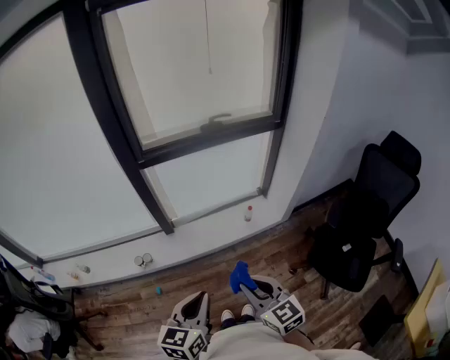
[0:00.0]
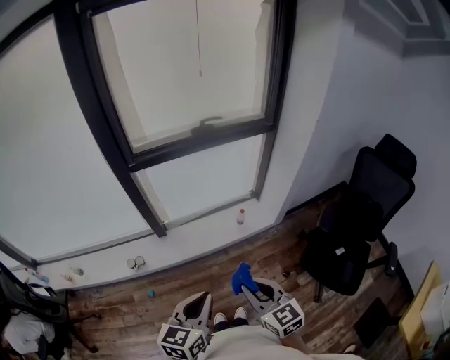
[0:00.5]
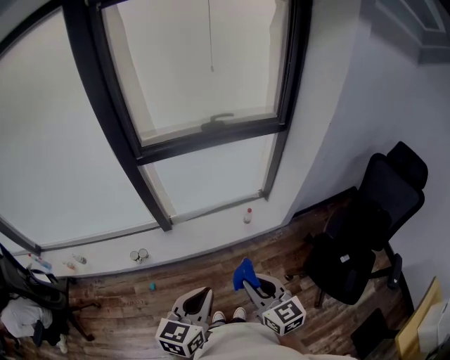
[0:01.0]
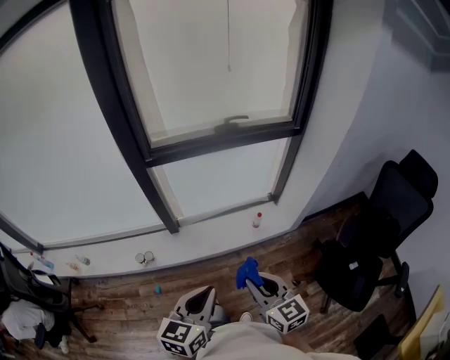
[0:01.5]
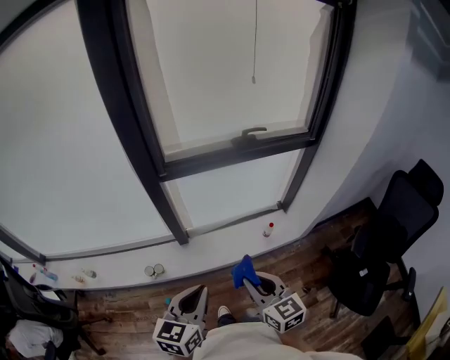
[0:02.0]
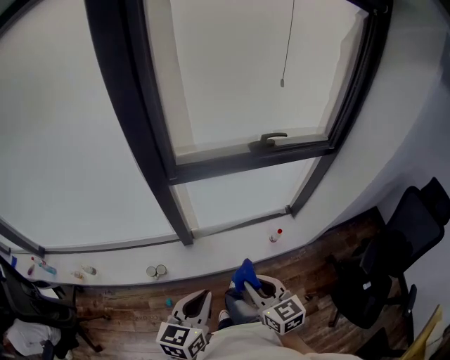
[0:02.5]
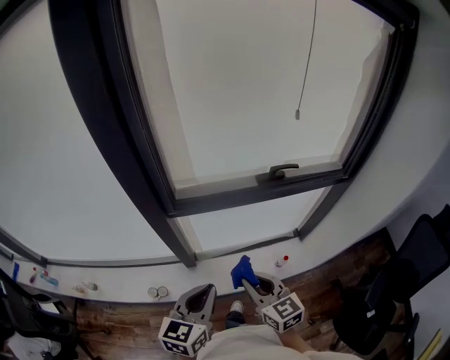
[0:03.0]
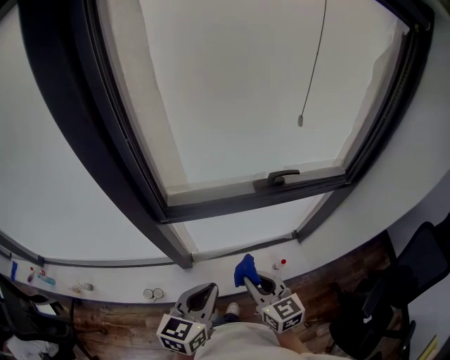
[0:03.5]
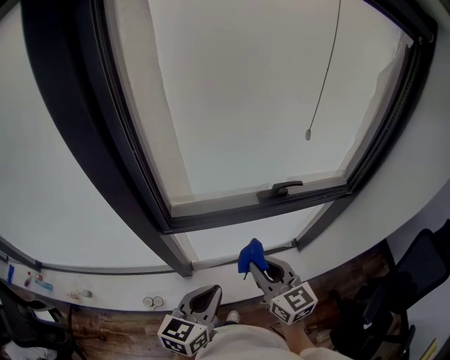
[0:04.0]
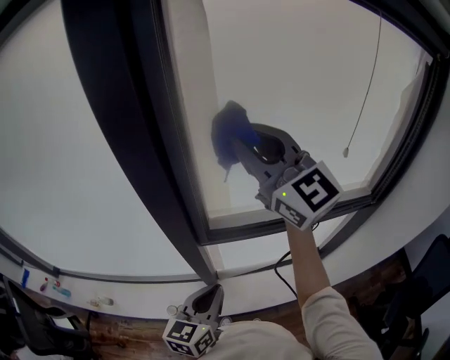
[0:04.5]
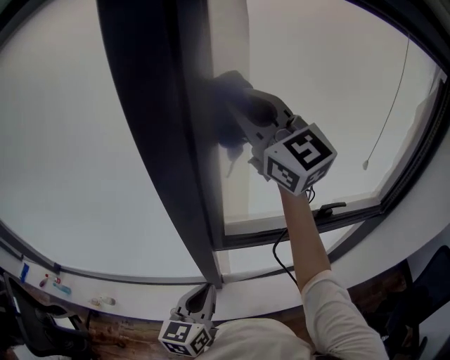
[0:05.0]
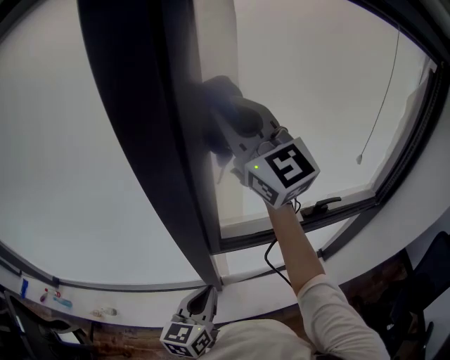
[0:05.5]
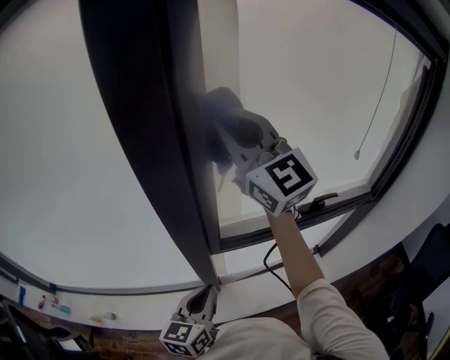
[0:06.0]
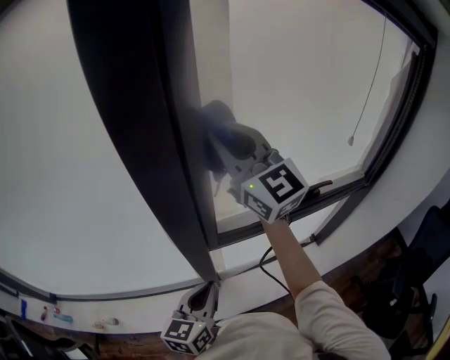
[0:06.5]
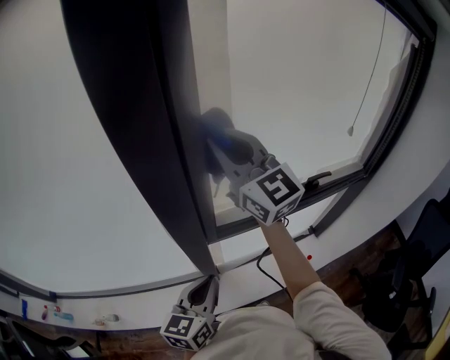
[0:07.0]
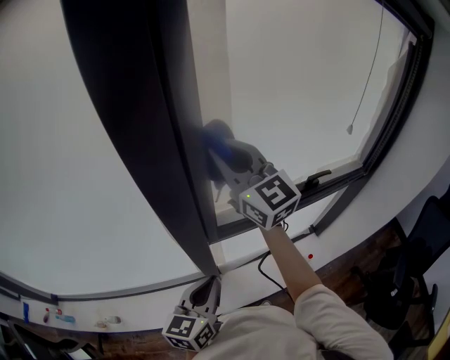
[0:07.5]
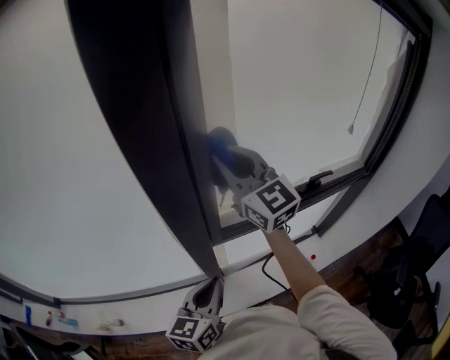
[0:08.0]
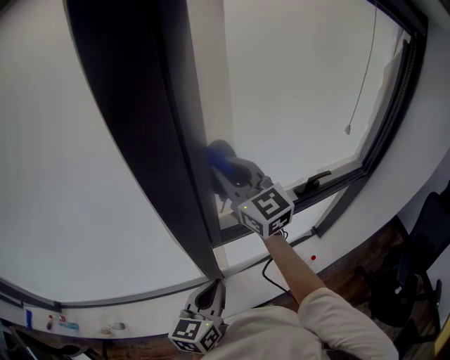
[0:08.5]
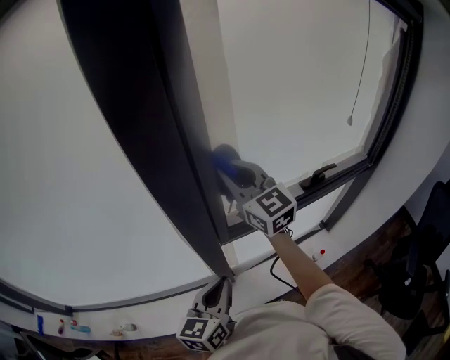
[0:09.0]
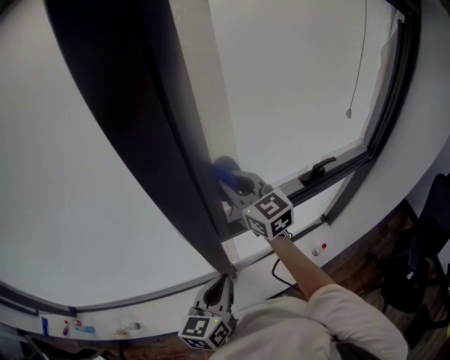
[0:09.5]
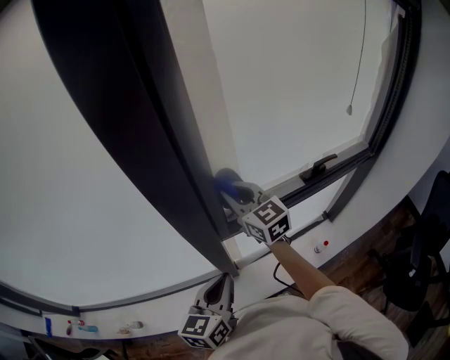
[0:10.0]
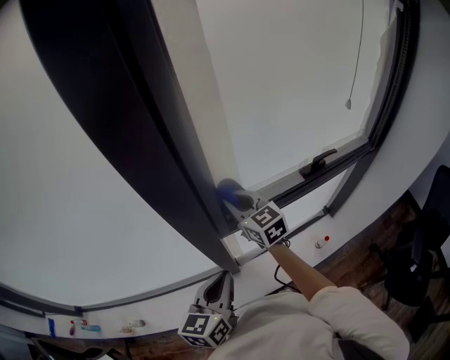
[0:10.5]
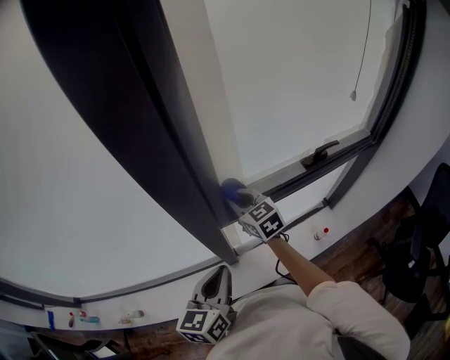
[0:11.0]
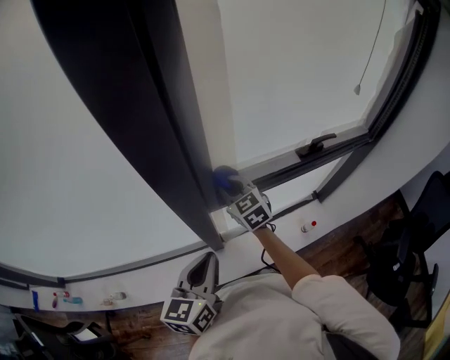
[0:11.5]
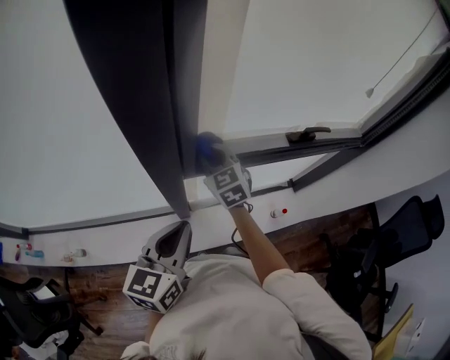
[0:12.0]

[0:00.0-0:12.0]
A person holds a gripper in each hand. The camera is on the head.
0:00.0 to 0:02.0: The two grippers go approximately 15 cm forward and to the left.
0:02.0 to 0:04.0: The two grippers go about 30 cm forward.
0:04.0 to 0:06.0: The right gripper shifts approximately 50 cm upward, forward and to the left, and changes its angle by roughly 40 degrees; the left gripper moves to the left and forward, some 20 cm.
0:06.0 to 0:08.0: The right gripper shifts approximately 15 cm downward.
0:08.0 to 0:10.0: The right gripper travels downward by approximately 15 cm.
0:10.0 to 0:12.0: The right gripper shifts approximately 15 cm downward, and swivels some 20 degrees.

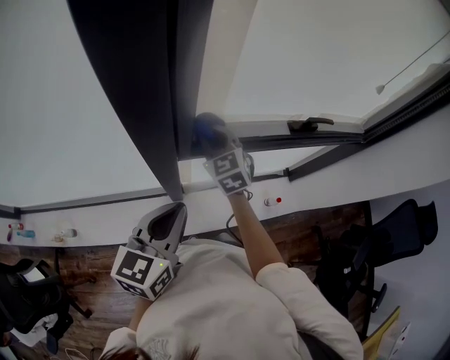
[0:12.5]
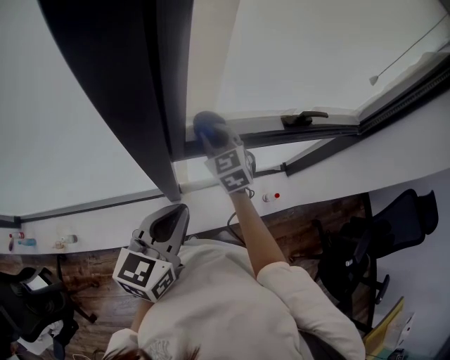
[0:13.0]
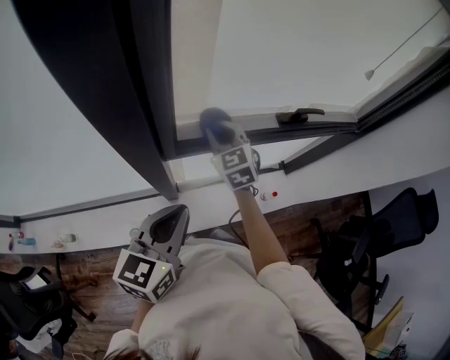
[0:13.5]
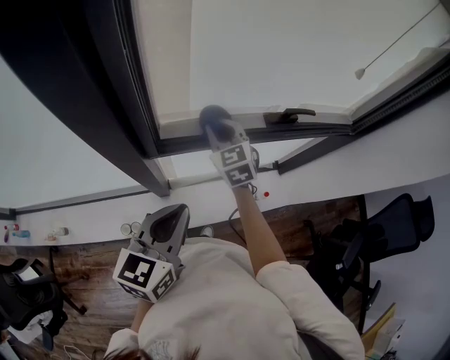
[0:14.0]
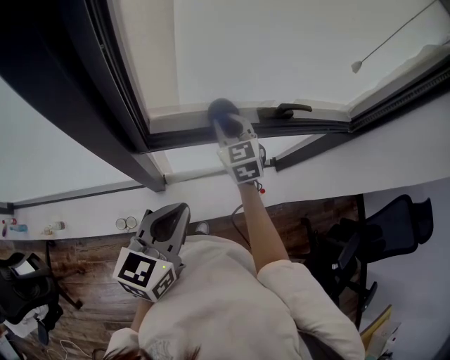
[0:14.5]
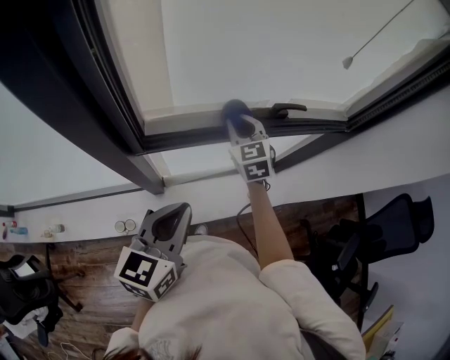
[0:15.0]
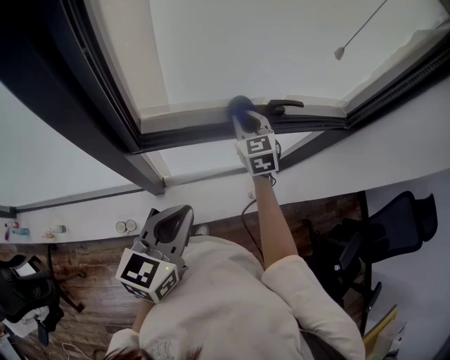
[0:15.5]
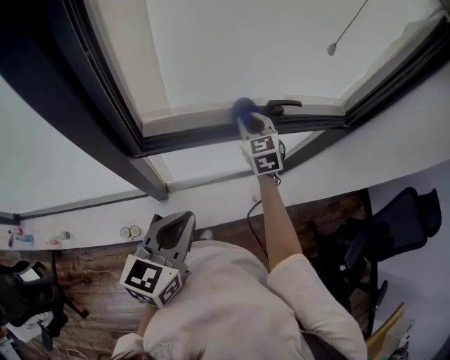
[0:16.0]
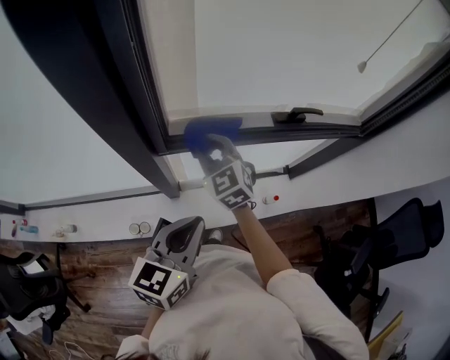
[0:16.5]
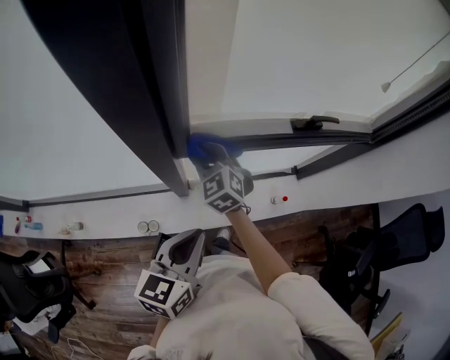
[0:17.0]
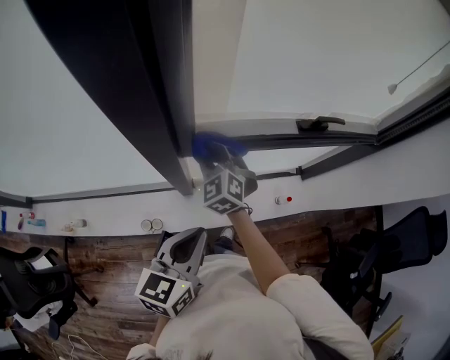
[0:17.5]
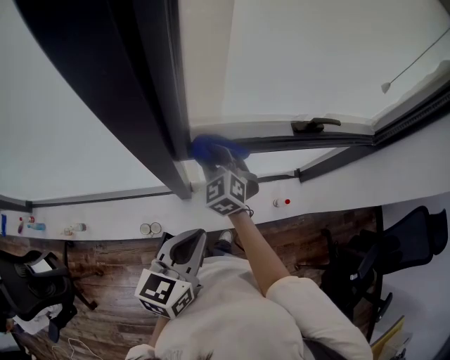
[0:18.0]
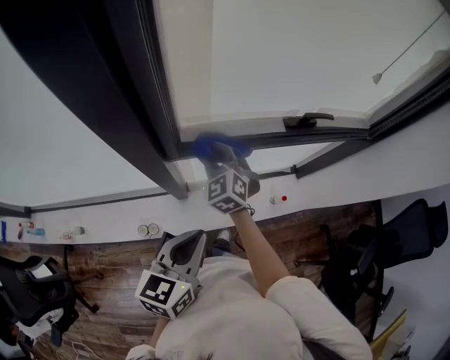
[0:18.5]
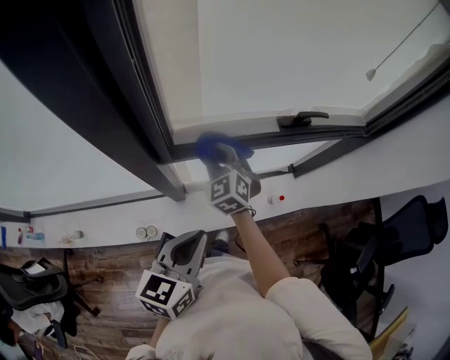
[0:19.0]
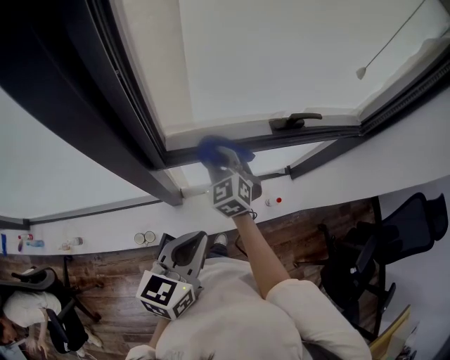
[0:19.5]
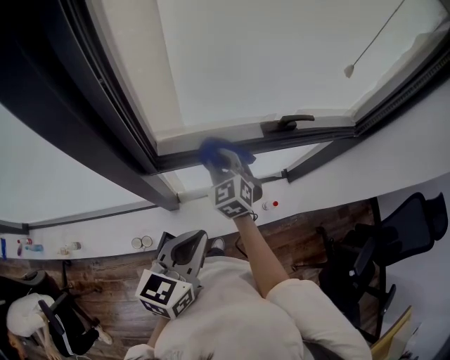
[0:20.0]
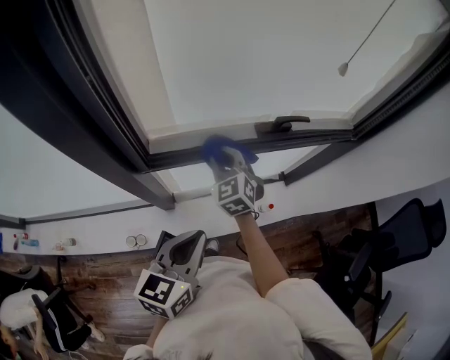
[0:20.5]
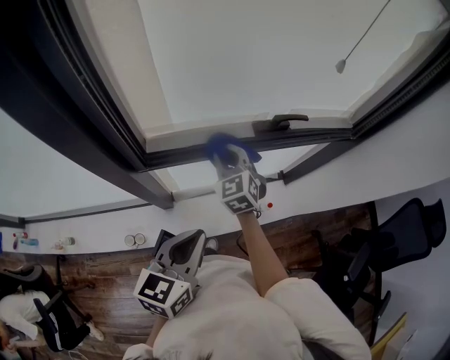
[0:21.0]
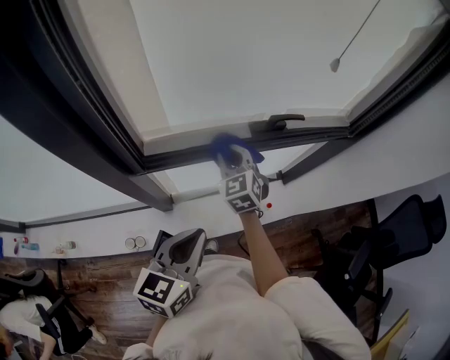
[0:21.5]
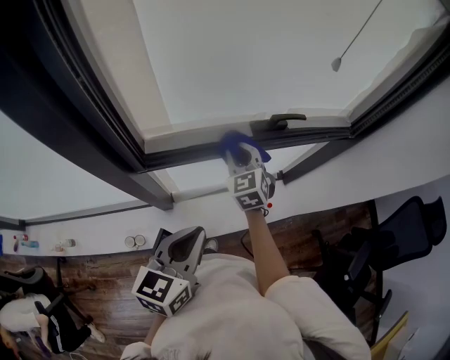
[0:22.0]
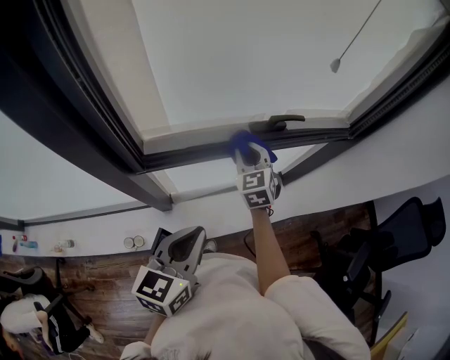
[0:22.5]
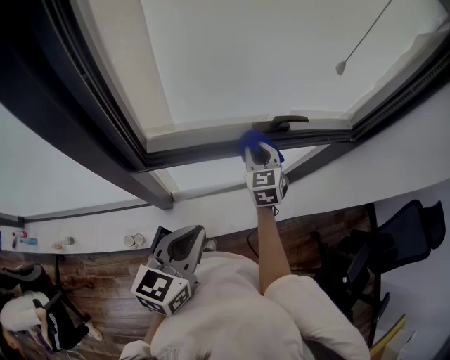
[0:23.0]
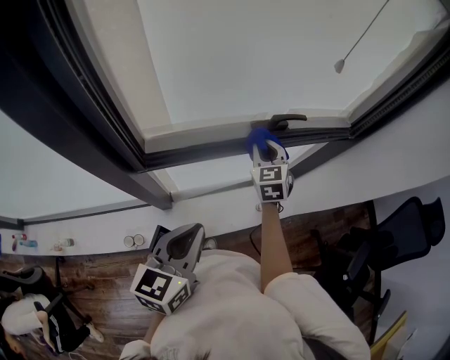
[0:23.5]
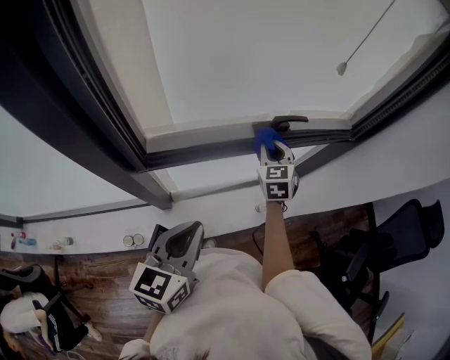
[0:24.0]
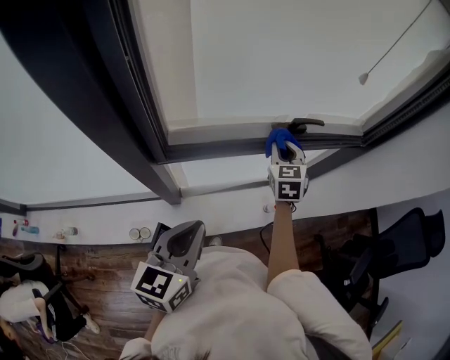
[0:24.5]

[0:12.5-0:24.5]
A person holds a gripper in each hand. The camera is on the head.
0:12.5 to 0:14.5: Both grippers move to the right, roughly 15 cm.
0:14.5 to 0:16.5: The right gripper shifts approximately 15 cm to the left and backward.
0:18.5 to 0:20.5: Both grippers travel together to the right, approximately 10 cm.
0:20.5 to 0:22.5: The right gripper moves to the right, some 10 cm.
0:22.5 to 0:24.5: The left gripper moves to the left, some 5 cm.

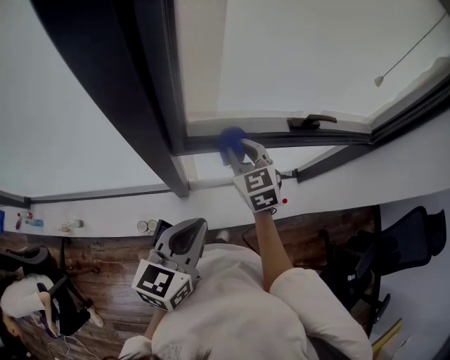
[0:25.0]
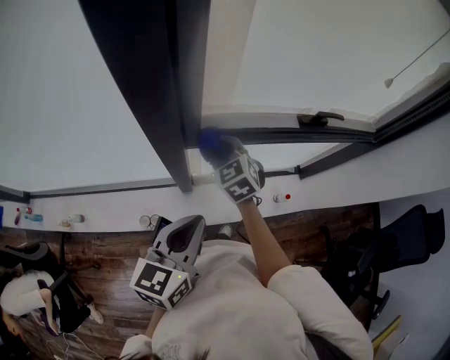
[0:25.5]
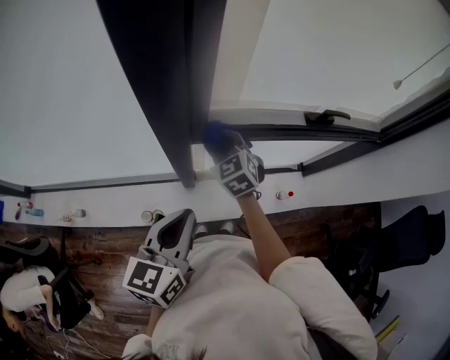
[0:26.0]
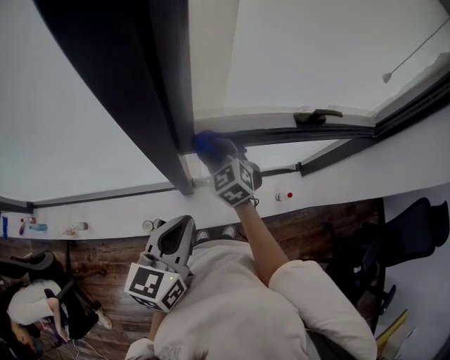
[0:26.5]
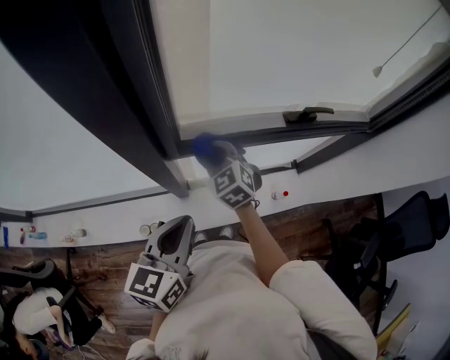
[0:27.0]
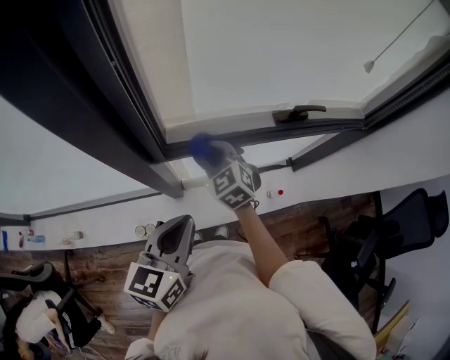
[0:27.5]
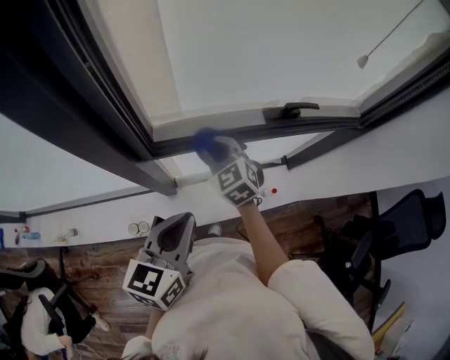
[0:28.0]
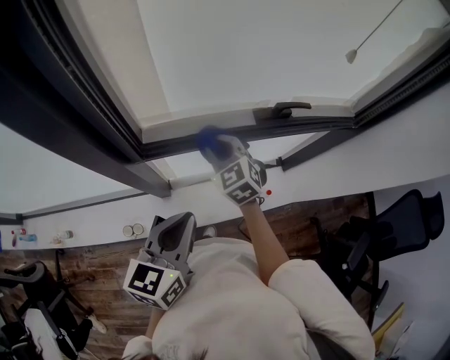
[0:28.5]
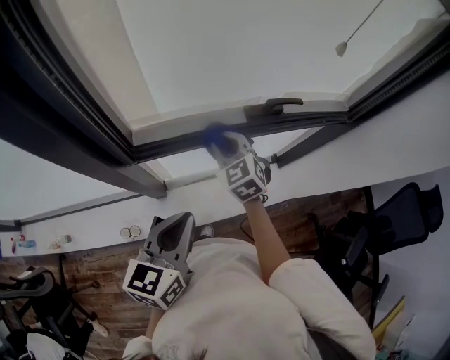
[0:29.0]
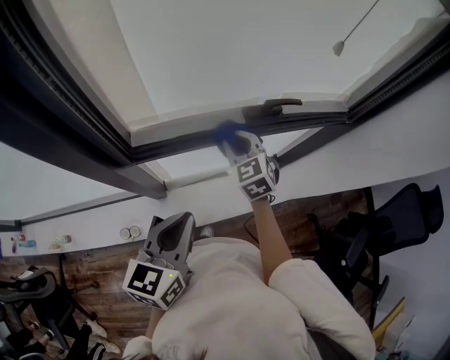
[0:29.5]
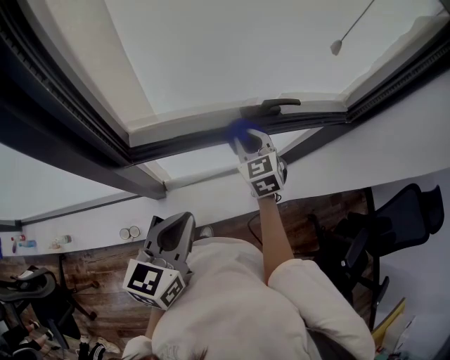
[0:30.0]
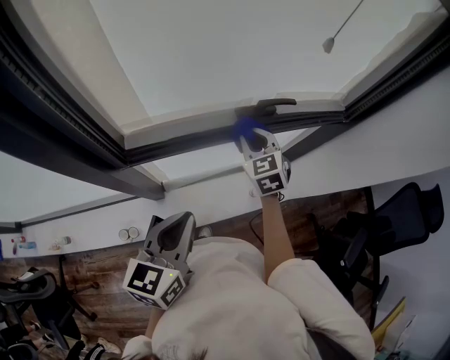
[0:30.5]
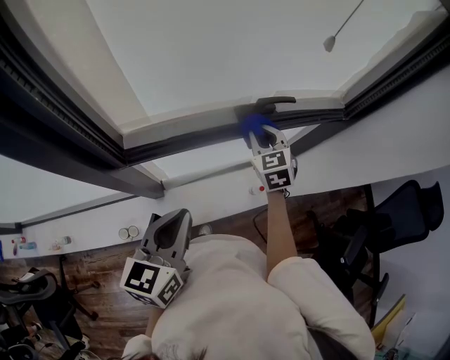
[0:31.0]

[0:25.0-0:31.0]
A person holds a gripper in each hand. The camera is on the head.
0:25.0 to 0:27.0: The right gripper moves to the left, some 5 cm.
0:27.0 to 0:29.0: The two grippers go about 15 cm to the right.
0:29.0 to 0:31.0: The right gripper goes roughly 15 cm to the right.
